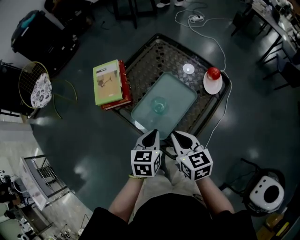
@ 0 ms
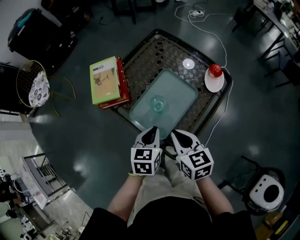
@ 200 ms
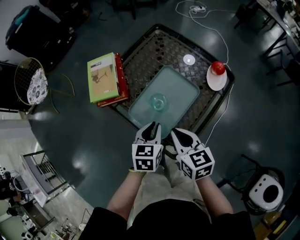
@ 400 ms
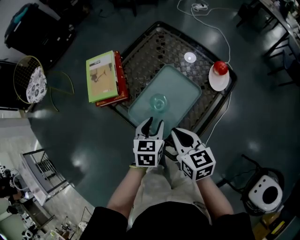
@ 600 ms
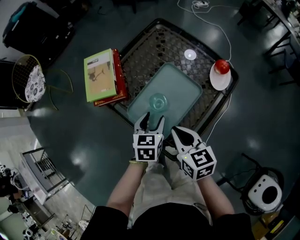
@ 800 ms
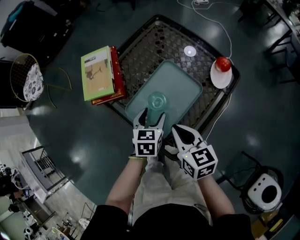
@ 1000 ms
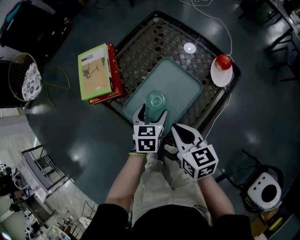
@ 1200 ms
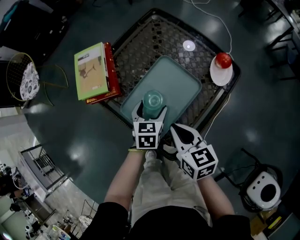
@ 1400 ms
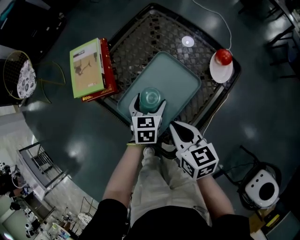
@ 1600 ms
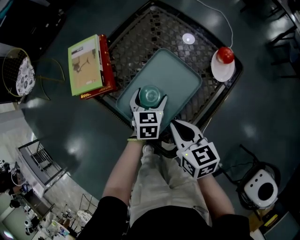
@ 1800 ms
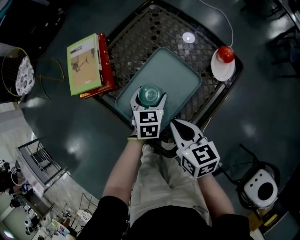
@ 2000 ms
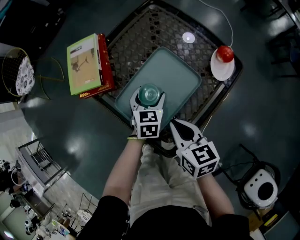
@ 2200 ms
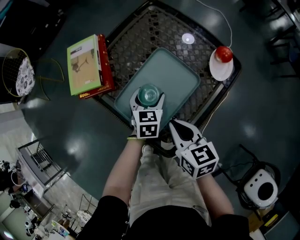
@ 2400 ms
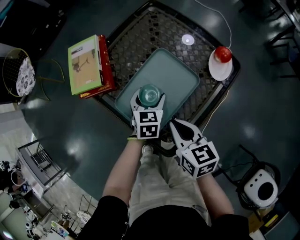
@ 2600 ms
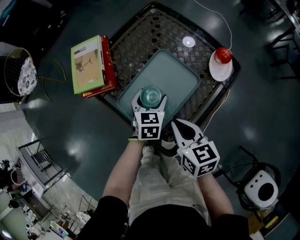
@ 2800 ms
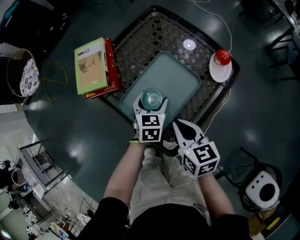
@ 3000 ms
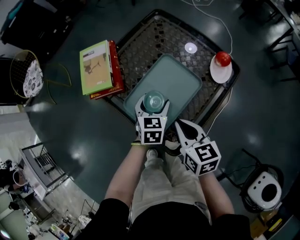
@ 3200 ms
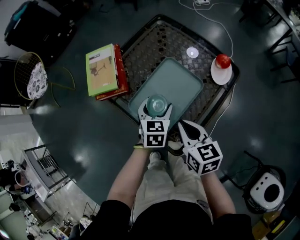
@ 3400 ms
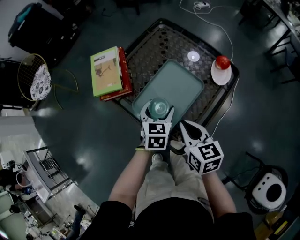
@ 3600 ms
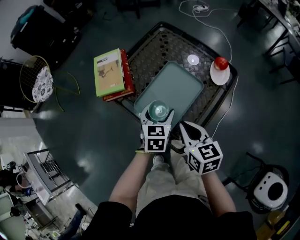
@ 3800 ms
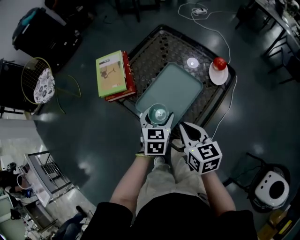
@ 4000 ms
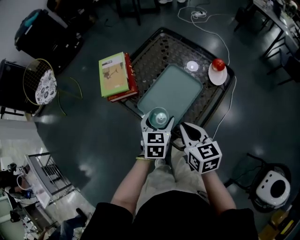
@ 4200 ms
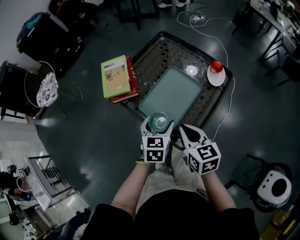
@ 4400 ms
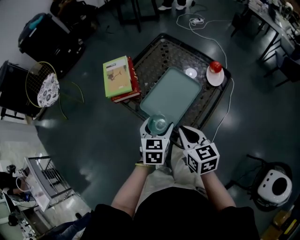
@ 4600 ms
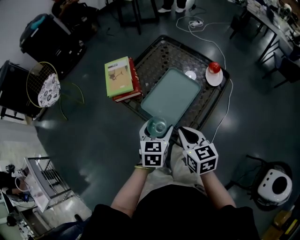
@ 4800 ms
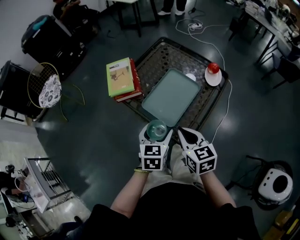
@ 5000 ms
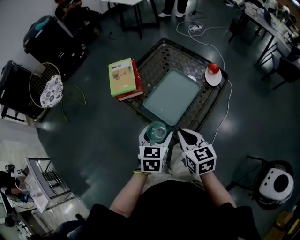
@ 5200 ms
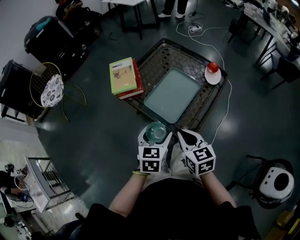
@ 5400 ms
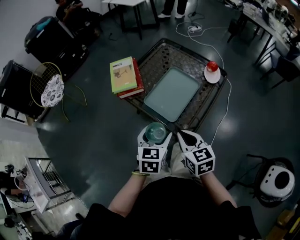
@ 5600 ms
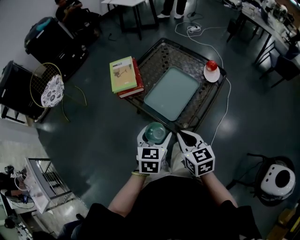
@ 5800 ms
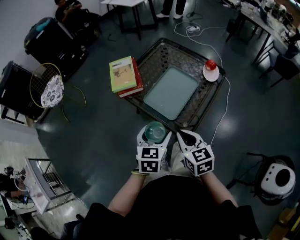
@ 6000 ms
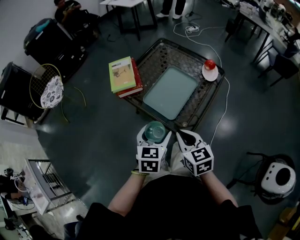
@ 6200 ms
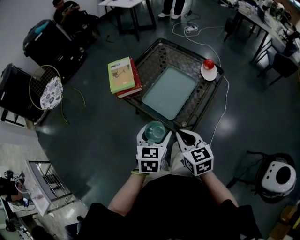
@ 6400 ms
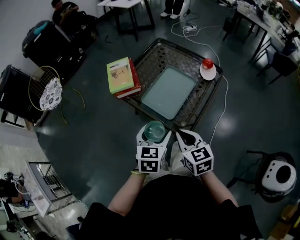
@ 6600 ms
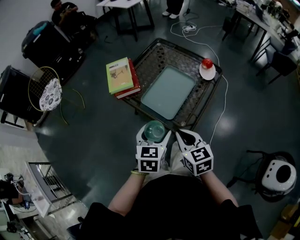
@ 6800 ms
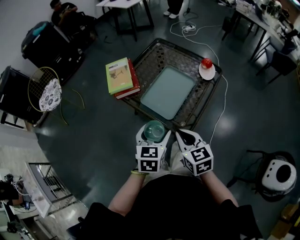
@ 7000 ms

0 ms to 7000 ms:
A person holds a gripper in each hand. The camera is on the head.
0 ms to 1400 ms: The right gripper travels downward by roughly 5 cm; the left gripper heads downward and forward, covering about 15 cm, and opens.
1400 ms to 2800 ms: The grippers move only a little.
2800 ms to 4200 ms: The right gripper moves upward and backward, approximately 10 cm. The left gripper shifts some 15 cm upward and backward.
4200 ms to 5600 ms: The left gripper shifts roughly 15 cm backward, upward and to the left. The right gripper shifts some 10 cm backward.
5600 ms to 7000 ms: The grippers make only small movements.

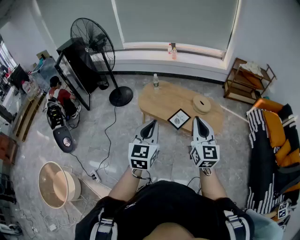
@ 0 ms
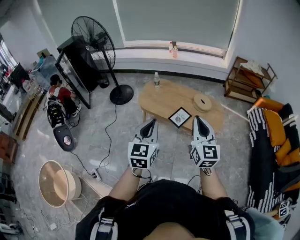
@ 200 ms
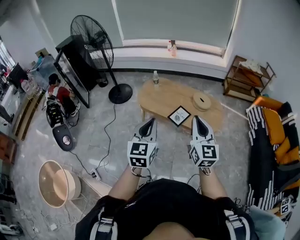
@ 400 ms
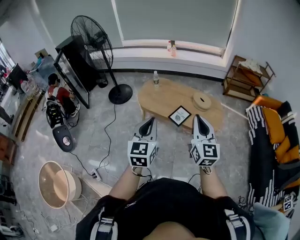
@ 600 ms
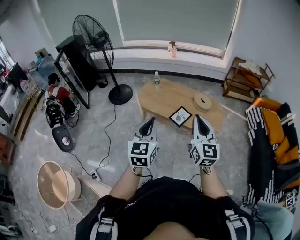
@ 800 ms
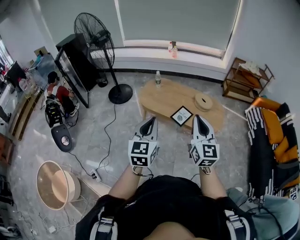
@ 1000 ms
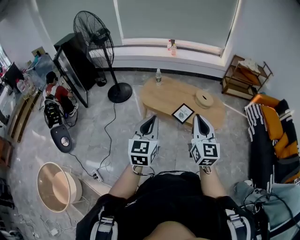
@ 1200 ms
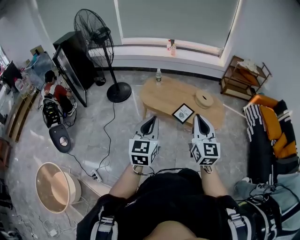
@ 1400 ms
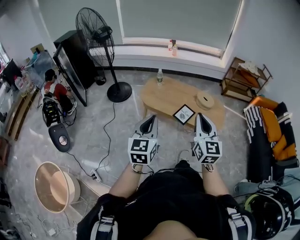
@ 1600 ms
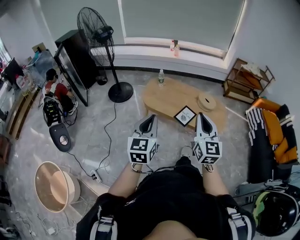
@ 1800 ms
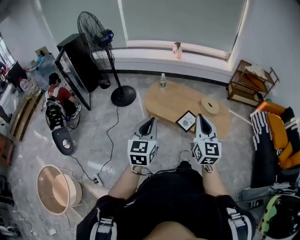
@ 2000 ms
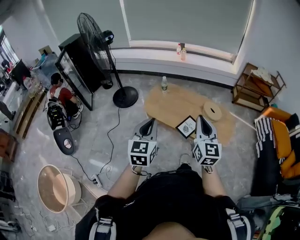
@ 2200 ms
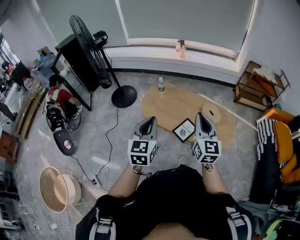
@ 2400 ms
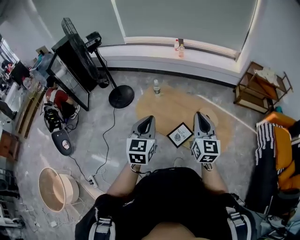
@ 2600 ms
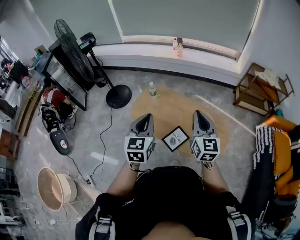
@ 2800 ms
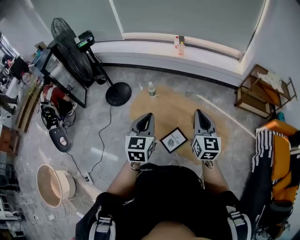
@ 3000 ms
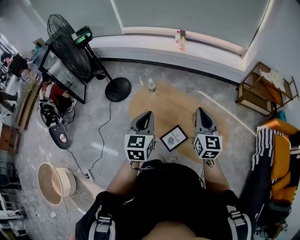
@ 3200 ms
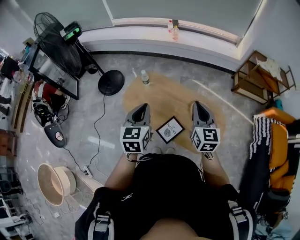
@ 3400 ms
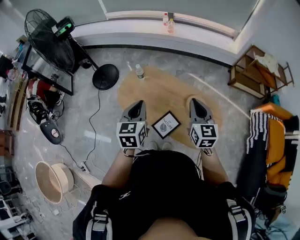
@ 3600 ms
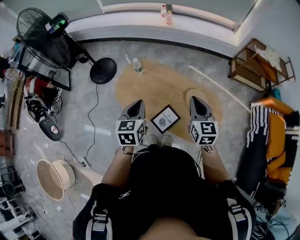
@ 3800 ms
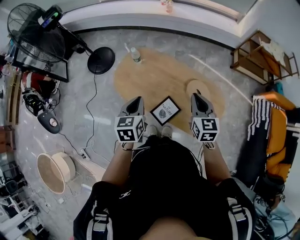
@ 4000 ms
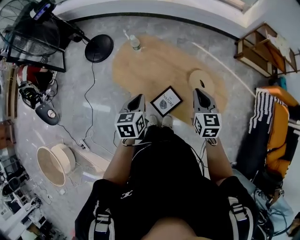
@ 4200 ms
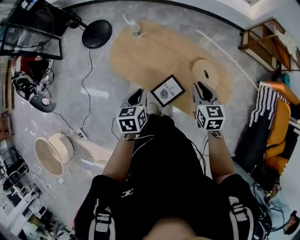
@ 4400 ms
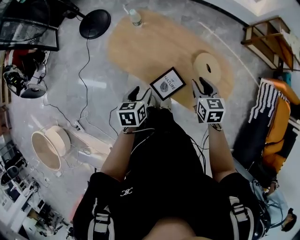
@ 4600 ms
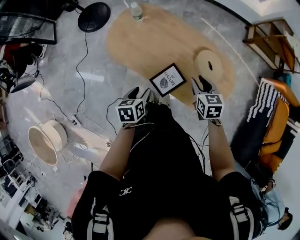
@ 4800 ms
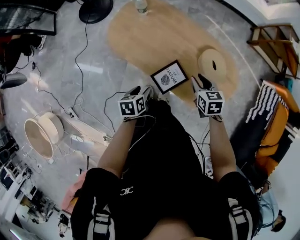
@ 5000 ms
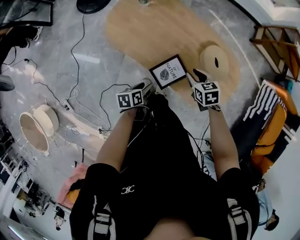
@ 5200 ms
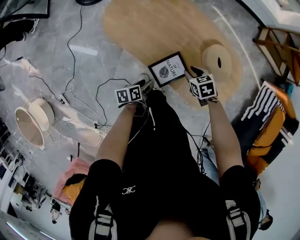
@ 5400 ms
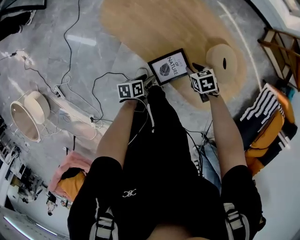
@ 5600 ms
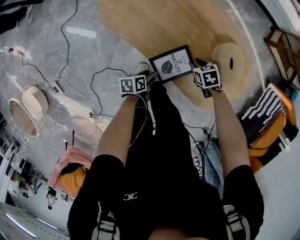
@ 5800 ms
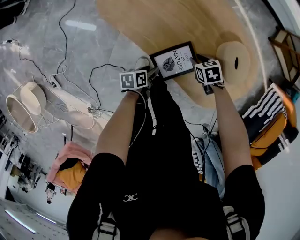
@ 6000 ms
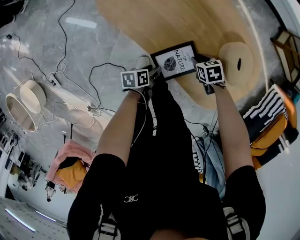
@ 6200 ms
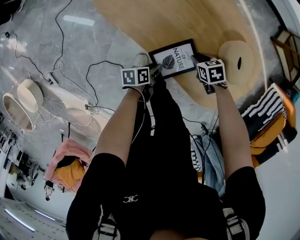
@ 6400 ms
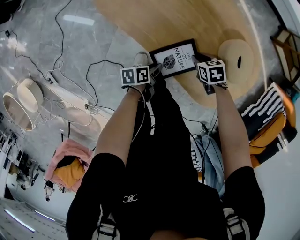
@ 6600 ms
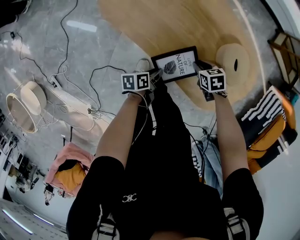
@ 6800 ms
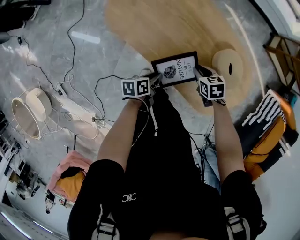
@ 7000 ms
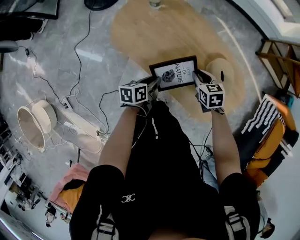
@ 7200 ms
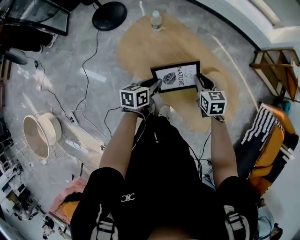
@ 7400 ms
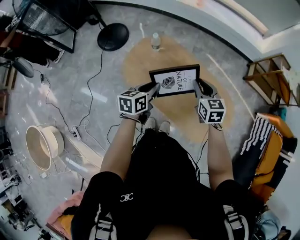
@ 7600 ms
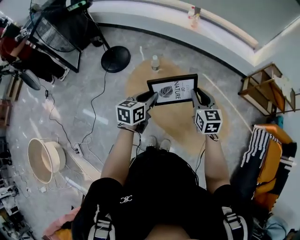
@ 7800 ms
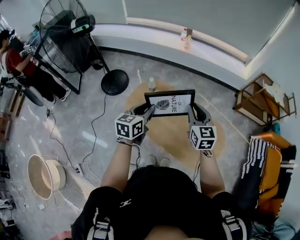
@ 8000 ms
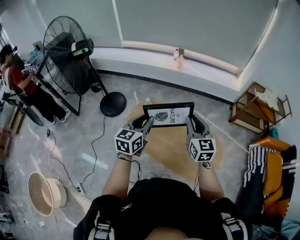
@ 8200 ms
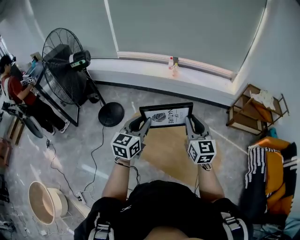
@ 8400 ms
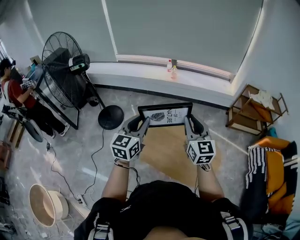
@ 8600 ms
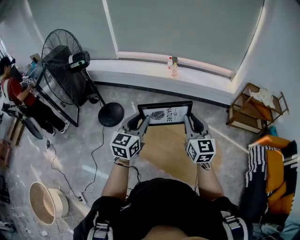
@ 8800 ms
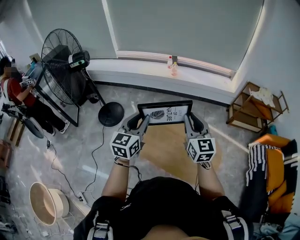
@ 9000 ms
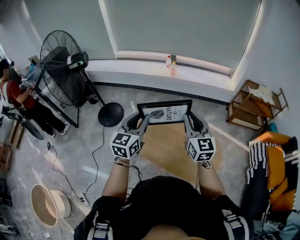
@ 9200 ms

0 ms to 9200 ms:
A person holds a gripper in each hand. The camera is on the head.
0 ms to 1600 ms: The grippers both shift to the left by roughly 15 cm.
1600 ms to 3000 ms: Both grippers are carried forward and to the right, some 60 cm.
3000 ms to 4600 ms: The grippers both shift downward by roughly 35 cm. The right gripper points its fingers some 40 degrees further downward, and opens; the left gripper points its fingers about 30 degrees further downward, and opens its fingers.
4600 ms to 6200 ms: The two grippers go approximately 40 cm downward. The left gripper rotates roughly 40 degrees. Meanwhile the right gripper rotates some 50 degrees.
6200 ms to 7600 ms: The grippers both shift upward by roughly 50 cm. The right gripper points its fingers about 40 degrees further upward, while the left gripper rotates some 40 degrees, and closes its fingers.
7600 ms to 9200 ms: The two grippers go about 30 cm upward. The left gripper turns by some 40 degrees; the right gripper angles its fingers upward, by roughly 30 degrees.

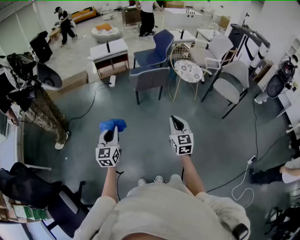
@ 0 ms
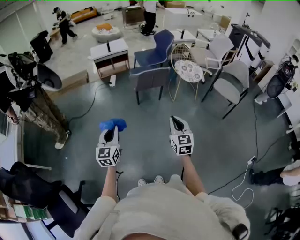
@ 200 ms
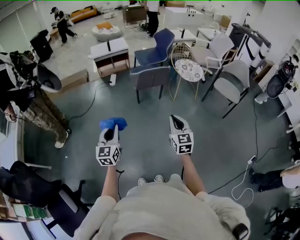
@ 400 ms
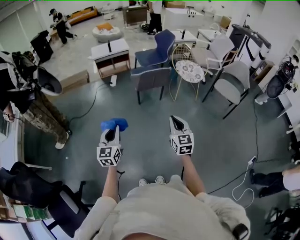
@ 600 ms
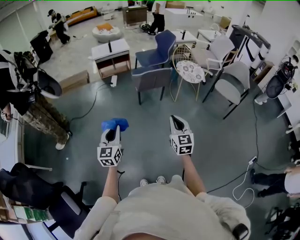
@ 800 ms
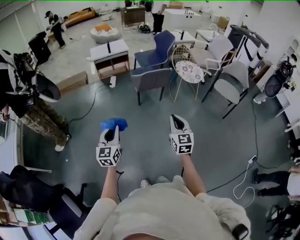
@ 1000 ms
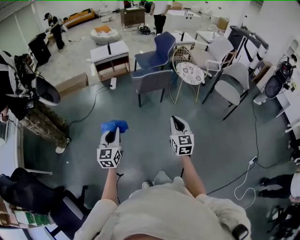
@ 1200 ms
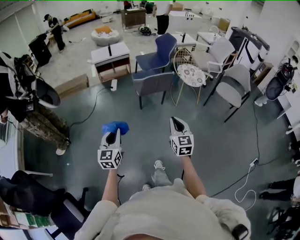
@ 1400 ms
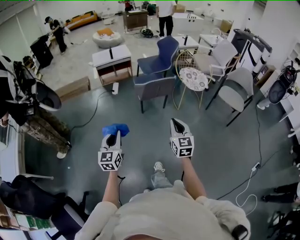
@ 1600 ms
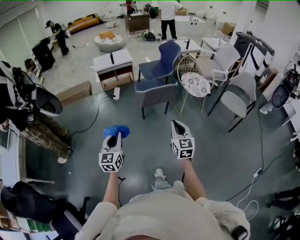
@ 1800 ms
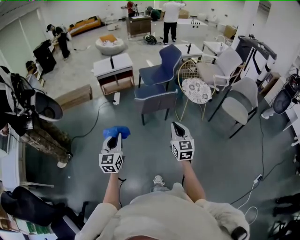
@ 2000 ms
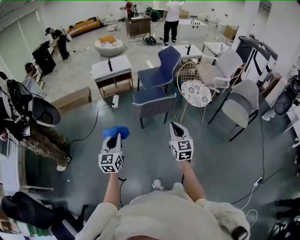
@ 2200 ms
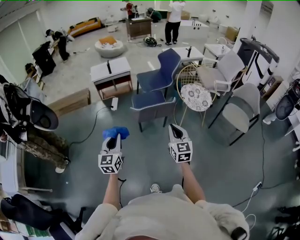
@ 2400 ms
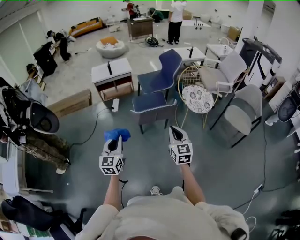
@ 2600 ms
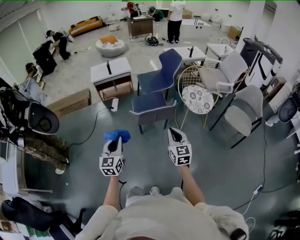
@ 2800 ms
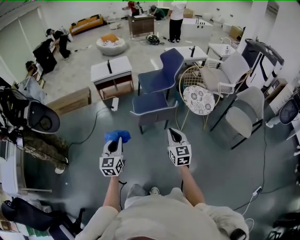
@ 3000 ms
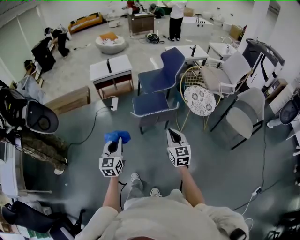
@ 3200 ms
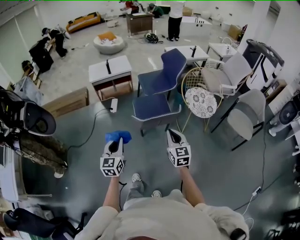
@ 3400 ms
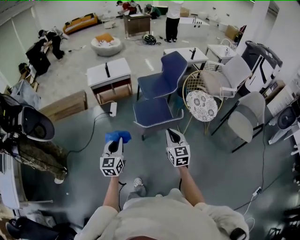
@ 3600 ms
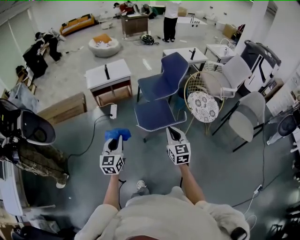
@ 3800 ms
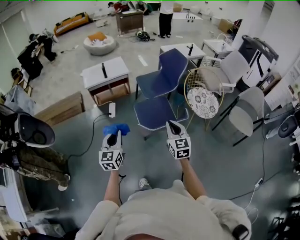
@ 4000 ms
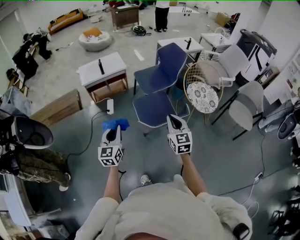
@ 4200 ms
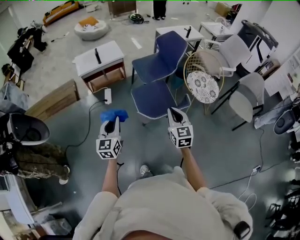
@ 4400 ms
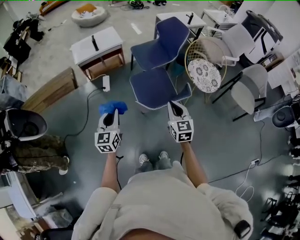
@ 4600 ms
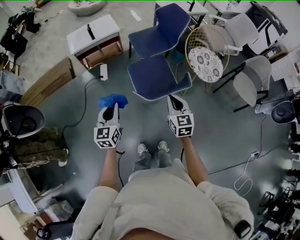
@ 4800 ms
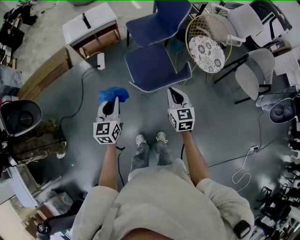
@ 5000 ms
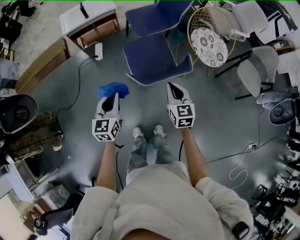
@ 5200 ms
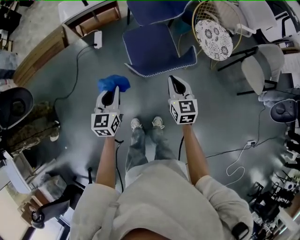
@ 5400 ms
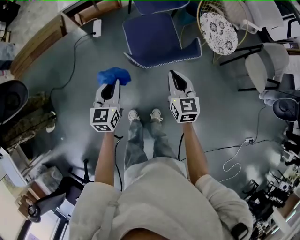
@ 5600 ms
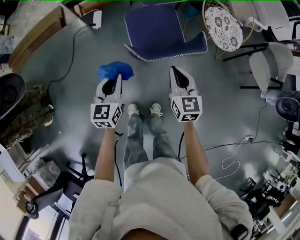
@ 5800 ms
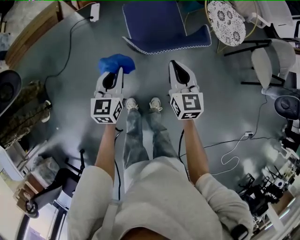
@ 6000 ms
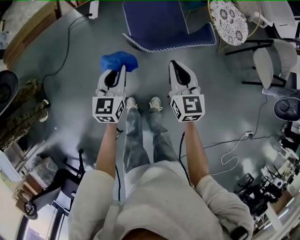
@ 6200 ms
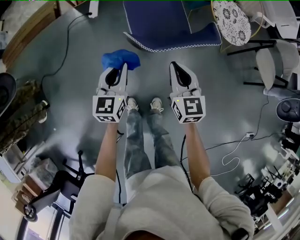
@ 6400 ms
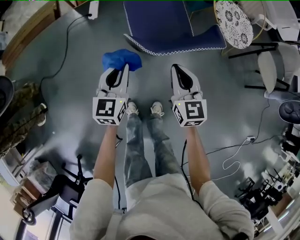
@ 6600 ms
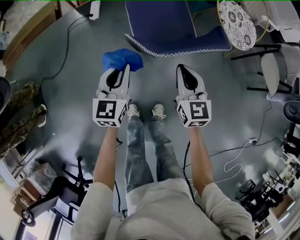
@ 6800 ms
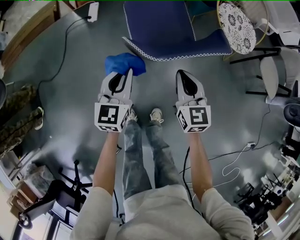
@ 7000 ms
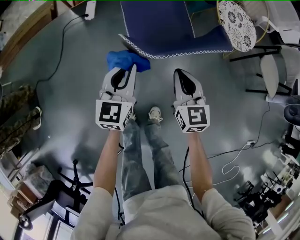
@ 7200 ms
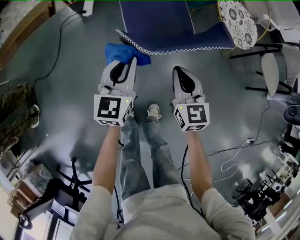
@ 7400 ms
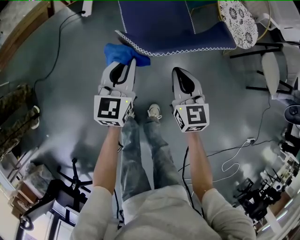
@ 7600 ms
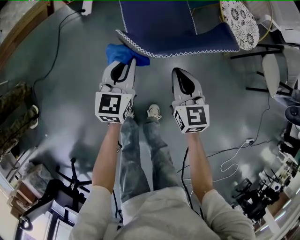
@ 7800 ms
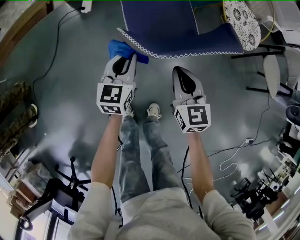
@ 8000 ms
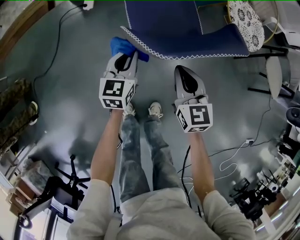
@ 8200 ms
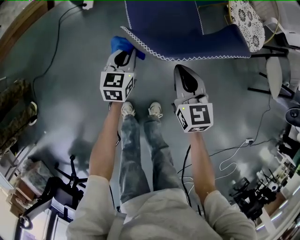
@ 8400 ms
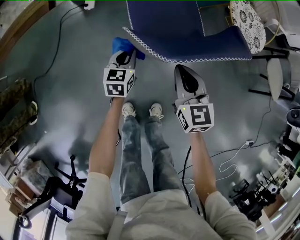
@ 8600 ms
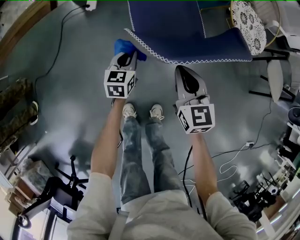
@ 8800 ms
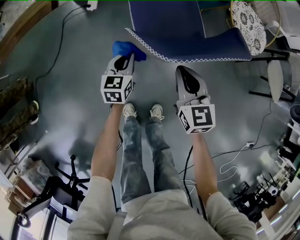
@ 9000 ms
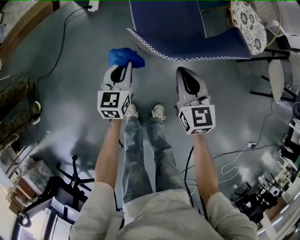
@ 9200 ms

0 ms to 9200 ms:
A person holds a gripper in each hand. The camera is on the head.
0 ms to 1600 ms: The grippers both shift forward by approximately 10 cm.
1600 ms to 3000 ms: Both grippers travel together forward, about 25 cm.
3000 ms to 4600 ms: The two grippers go some 25 cm forward and to the left.
4600 ms to 6200 ms: The left gripper shifts approximately 20 cm downward and to the right; the right gripper goes roughly 15 cm downward.
6200 ms to 7600 ms: The left gripper moves downward, roughly 5 cm. The right gripper shifts roughly 10 cm downward.
7600 ms to 9200 ms: The left gripper shifts some 10 cm downward and to the left.
